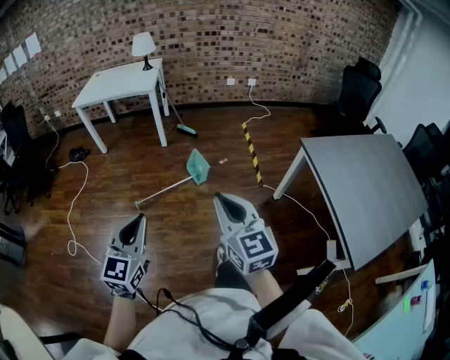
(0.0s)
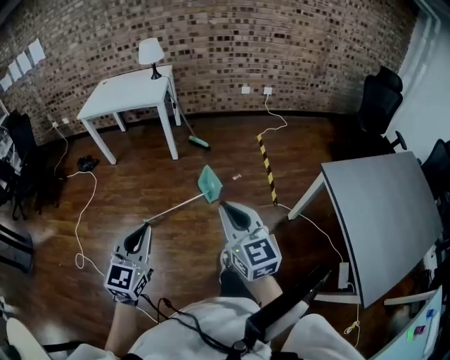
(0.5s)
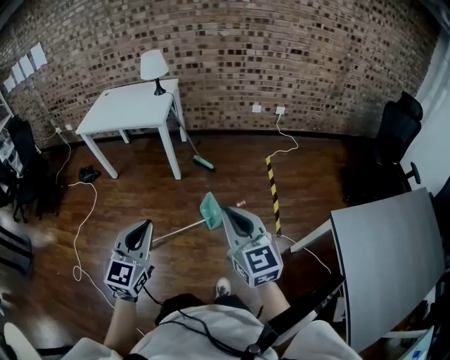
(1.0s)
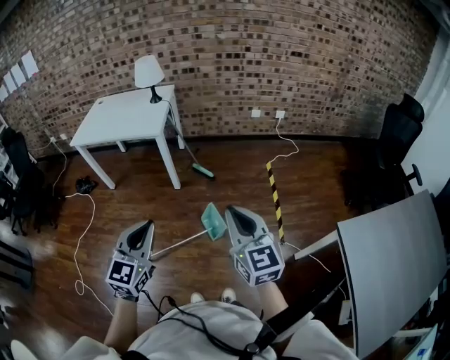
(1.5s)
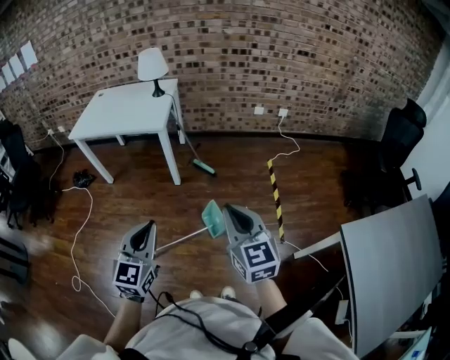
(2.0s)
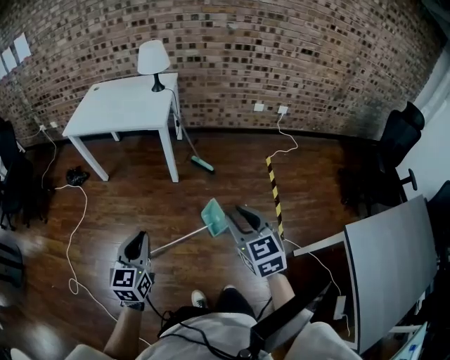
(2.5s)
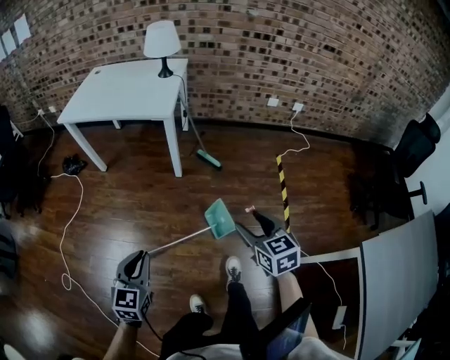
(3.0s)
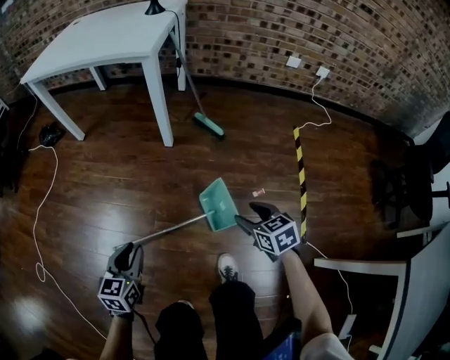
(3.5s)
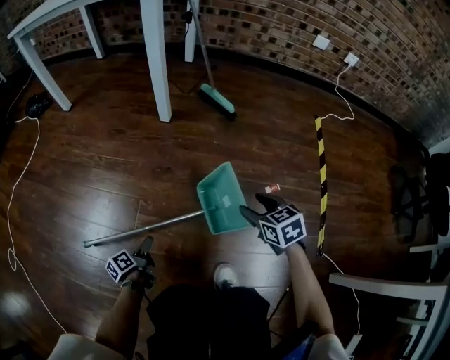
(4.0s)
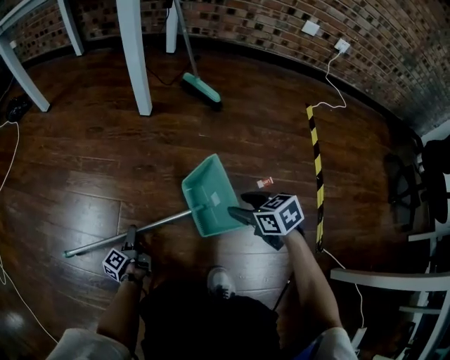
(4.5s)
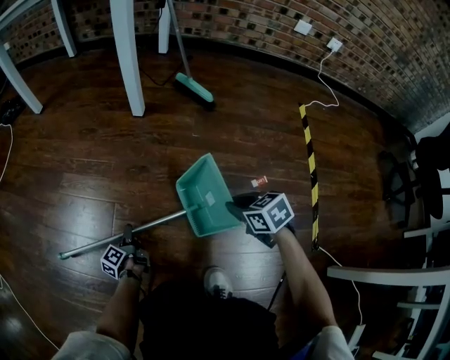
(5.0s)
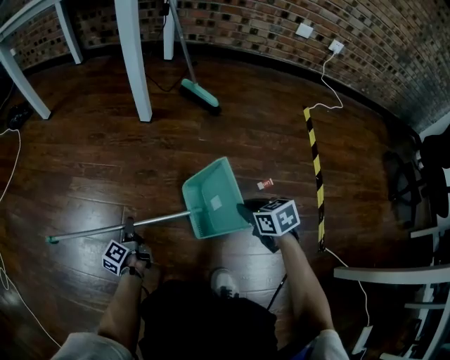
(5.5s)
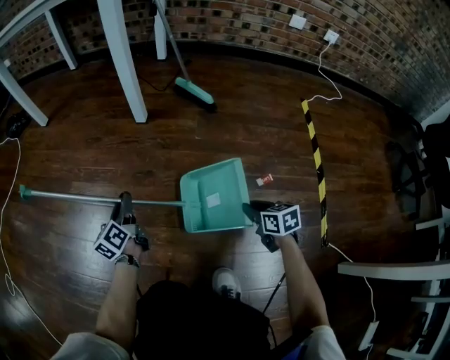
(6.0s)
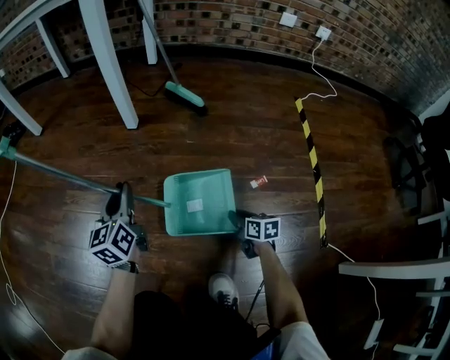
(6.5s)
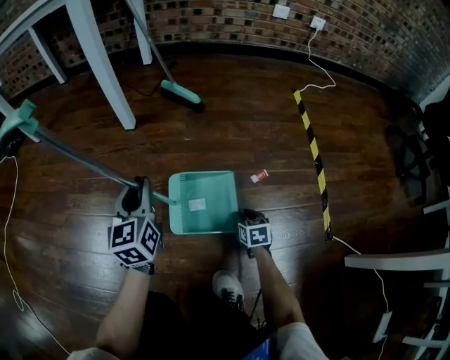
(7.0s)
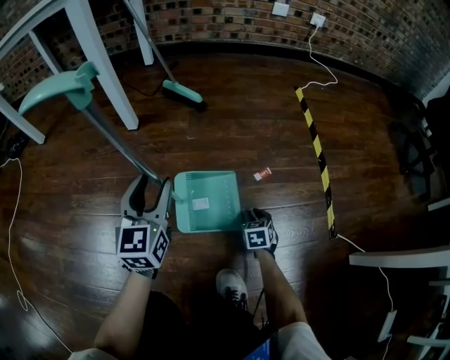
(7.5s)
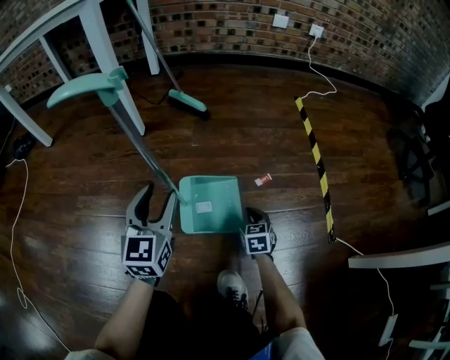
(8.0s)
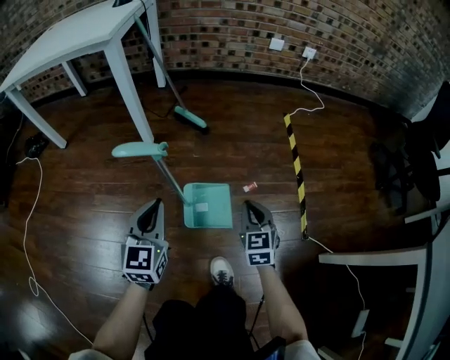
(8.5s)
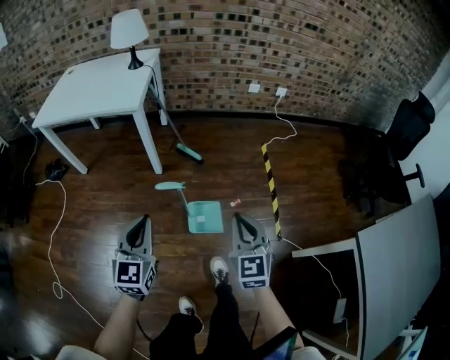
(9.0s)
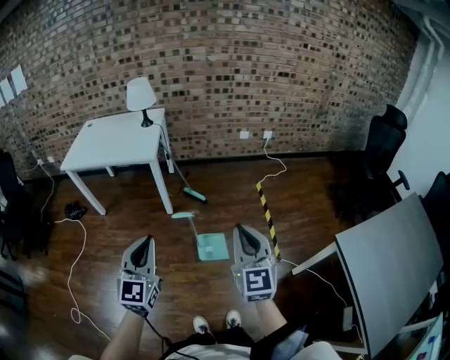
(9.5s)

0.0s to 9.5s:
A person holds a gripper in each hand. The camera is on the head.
0.0s to 2.0s: Both grippers are carried forward, approximately 50 cm.
2.0s to 4.0s: Both grippers move downward, approximately 90 cm. The left gripper rolls counterclockwise, seen from behind, by some 90 degrees, and opens up. Meanwhile the right gripper points its fingers about 40 degrees further downward, and opens its fingers.
4.0s to 5.5s: The right gripper moves downward, some 10 cm, and closes its fingers; the left gripper goes roughly 10 cm forward, rotates about 20 degrees, and closes.
5.5s to 7.5s: The left gripper moves upward, about 25 cm, twists roughly 70 degrees clockwise, seen from behind, and opens up; the right gripper shifts approximately 15 cm downward, and turns by some 30 degrees.
7.5s to 9.5s: The right gripper goes roughly 1 m upward, and tilts its fingers roughly 50 degrees upward; the left gripper travels upward and backward by roughly 80 cm, and closes.

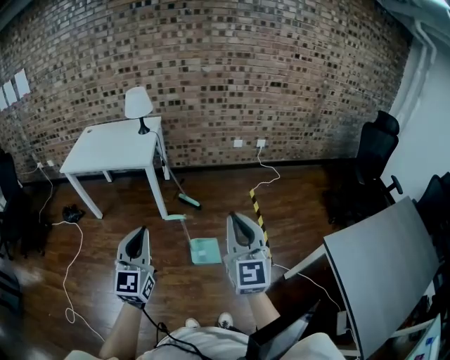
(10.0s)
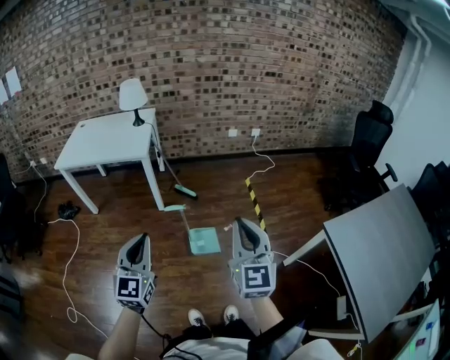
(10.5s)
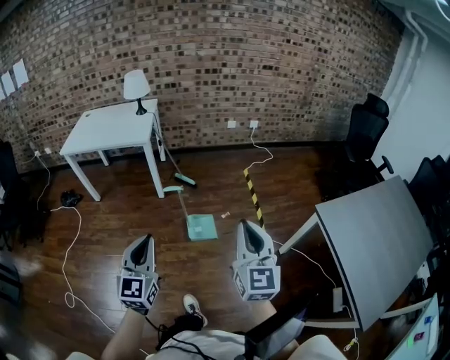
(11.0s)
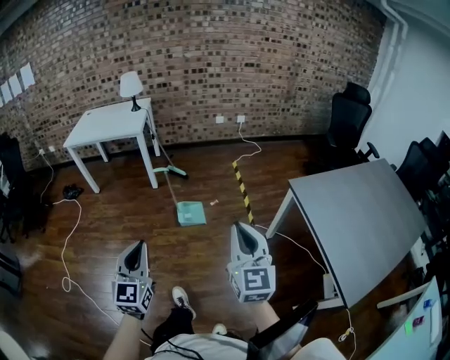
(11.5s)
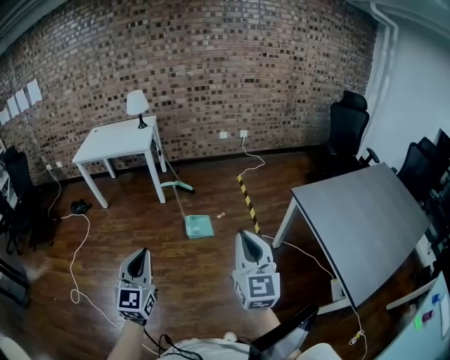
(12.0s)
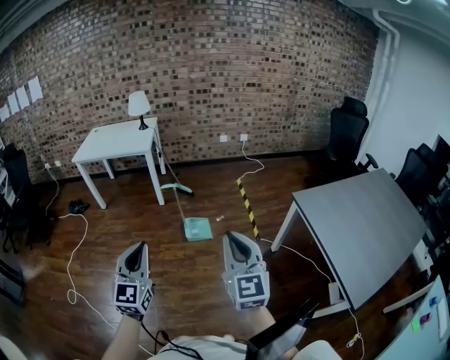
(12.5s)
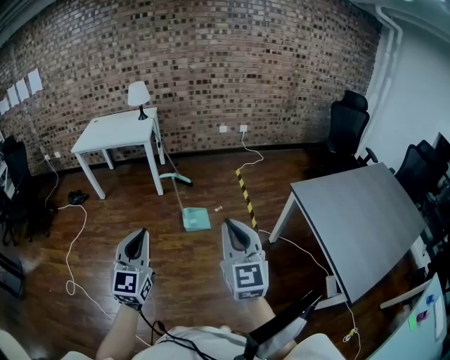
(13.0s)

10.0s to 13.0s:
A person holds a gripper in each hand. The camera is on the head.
10.0s to 11.5s: The grippers both shift backward by roughly 35 cm.
11.5s to 13.0s: The right gripper moves to the left, about 5 cm. The left gripper heads upward, covering approximately 5 cm.

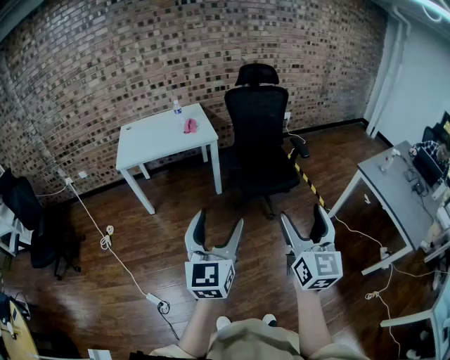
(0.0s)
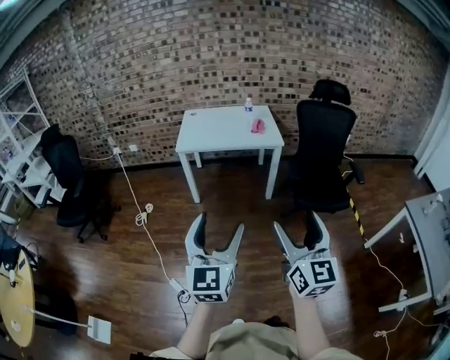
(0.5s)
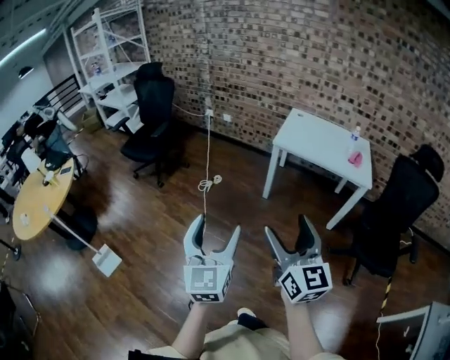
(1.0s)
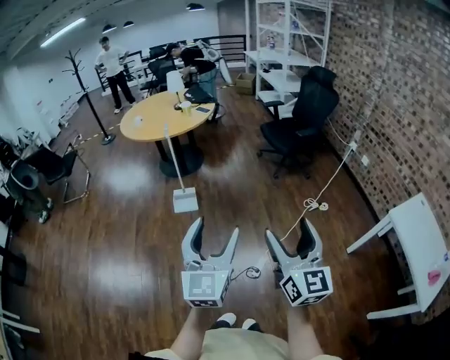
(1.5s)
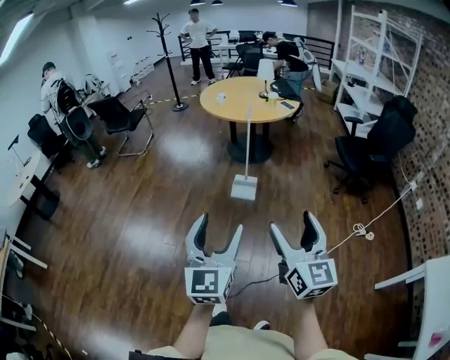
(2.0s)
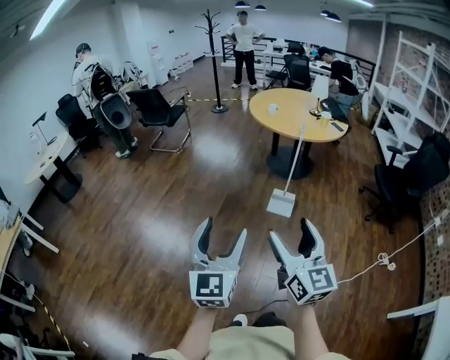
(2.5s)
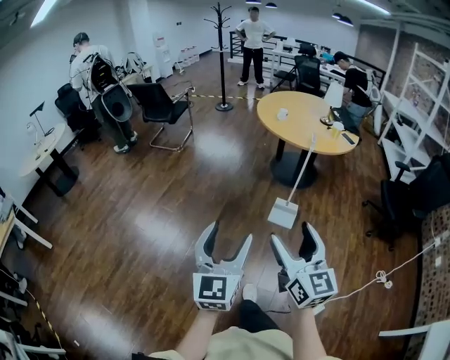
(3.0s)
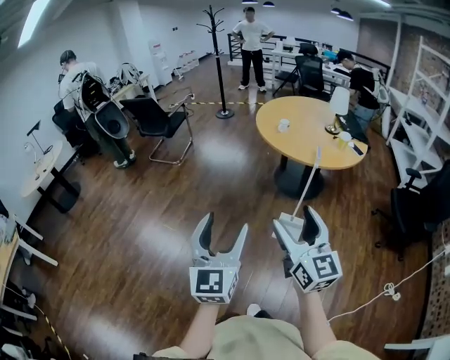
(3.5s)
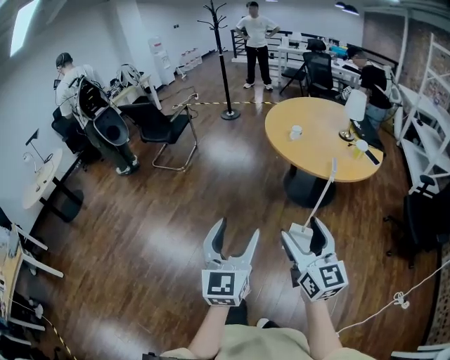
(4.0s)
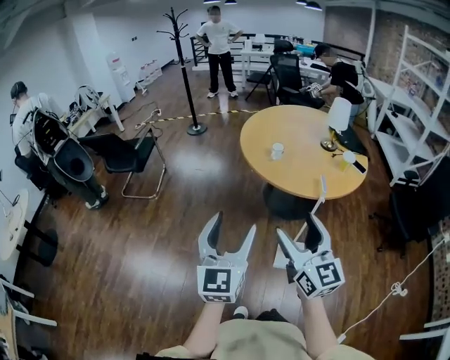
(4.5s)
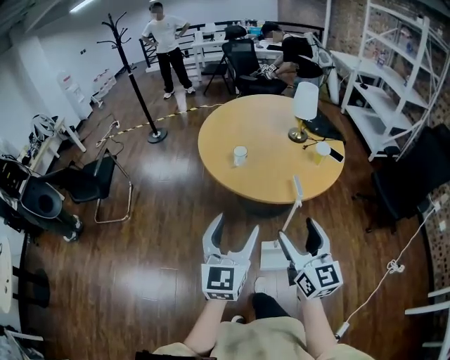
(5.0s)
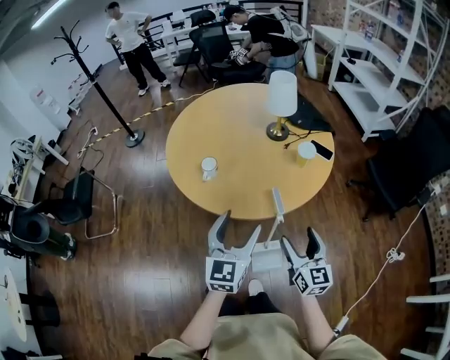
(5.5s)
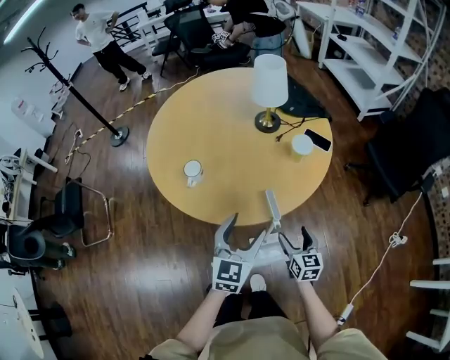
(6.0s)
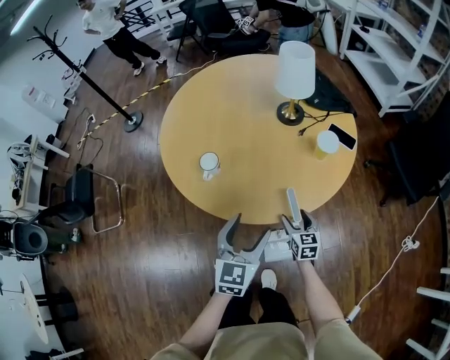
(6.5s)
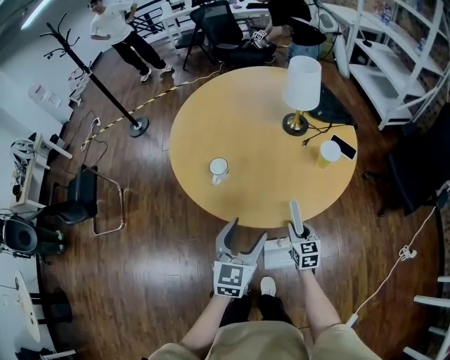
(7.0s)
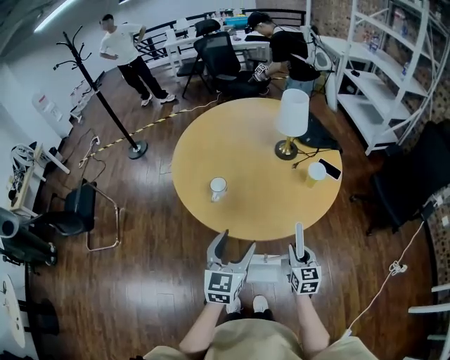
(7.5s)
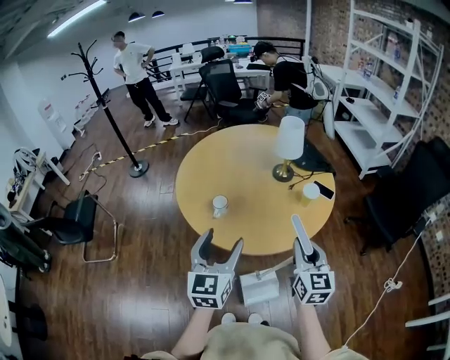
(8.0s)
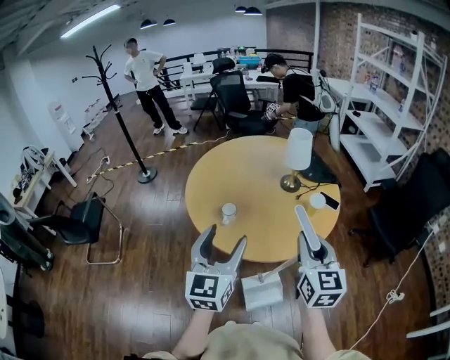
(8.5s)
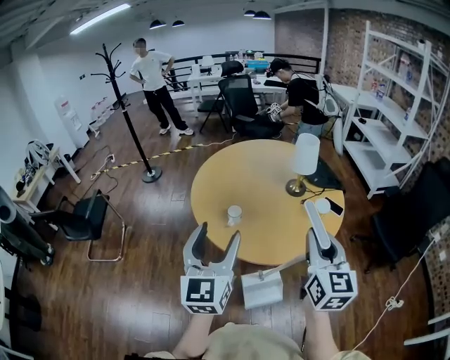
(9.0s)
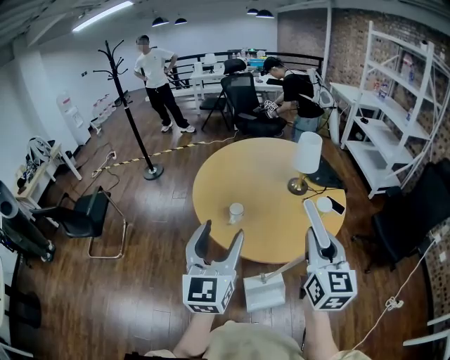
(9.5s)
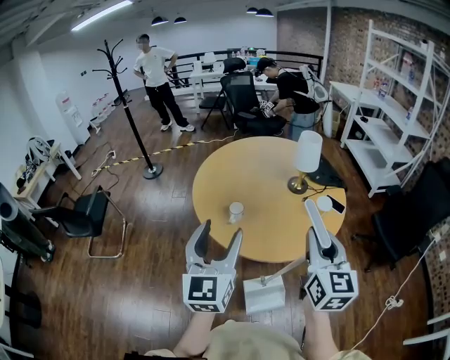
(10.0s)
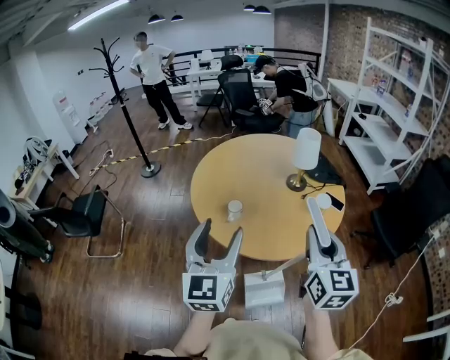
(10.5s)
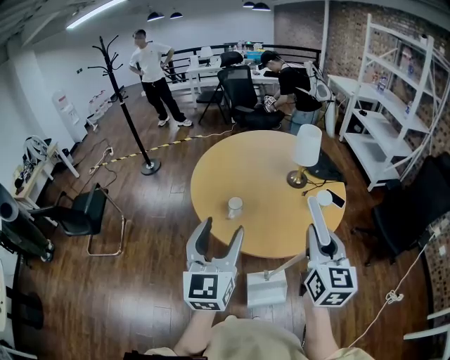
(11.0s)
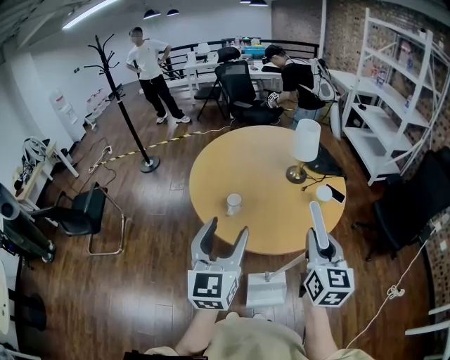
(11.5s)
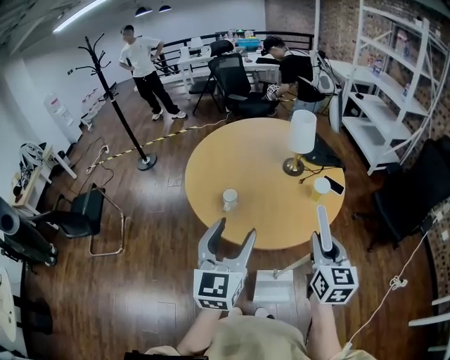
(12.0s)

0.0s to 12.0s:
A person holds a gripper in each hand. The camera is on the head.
0.0s to 2.0s: The pair of grippers is taken approximately 70 cm. The right gripper changes its angle by about 120 degrees. The left gripper turns by some 120 degrees.
2.0s to 4.0s: Both grippers are carried forward, approximately 60 cm.
4.0s to 6.0s: Both grippers are carried some 60 cm. The left gripper turns by about 50 degrees. Meanwhile the right gripper turns by about 50 degrees.
6.0s to 8.0s: The left gripper moves upward and to the left, approximately 20 cm, while the right gripper heads upward, covering about 25 cm, and closes up.
8.0s to 10.0s: The right gripper is displaced upward by about 15 cm, while the left gripper goes some 10 cm upward and to the left.
10.0s to 12.0s: The left gripper travels to the right by approximately 5 cm. The right gripper goes some 10 cm downward.

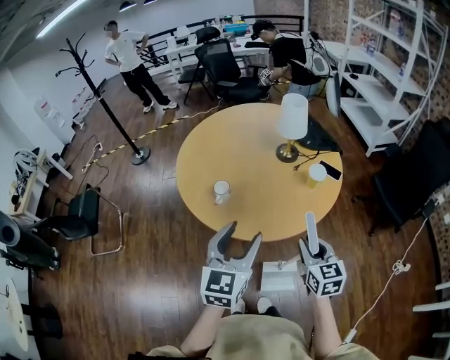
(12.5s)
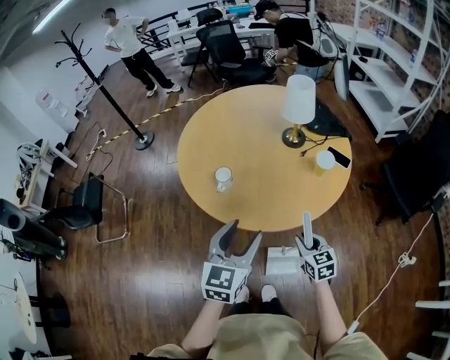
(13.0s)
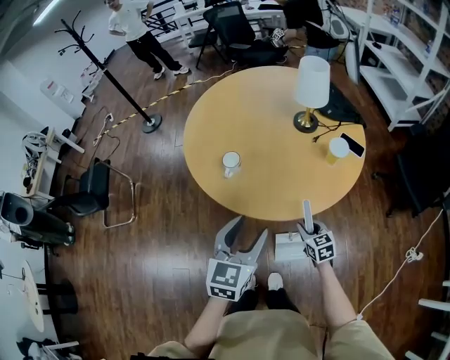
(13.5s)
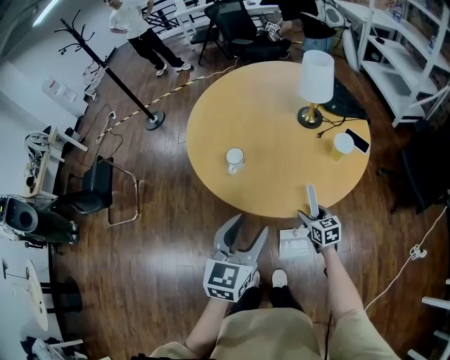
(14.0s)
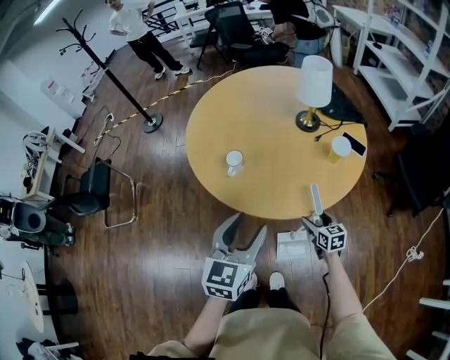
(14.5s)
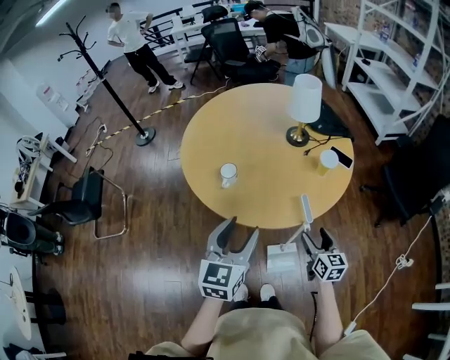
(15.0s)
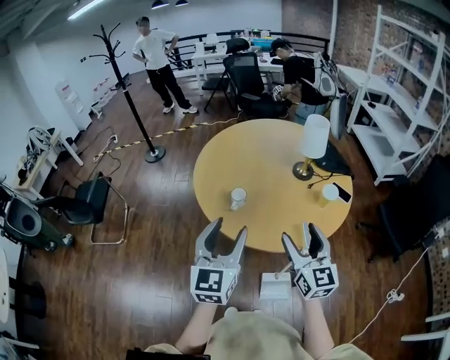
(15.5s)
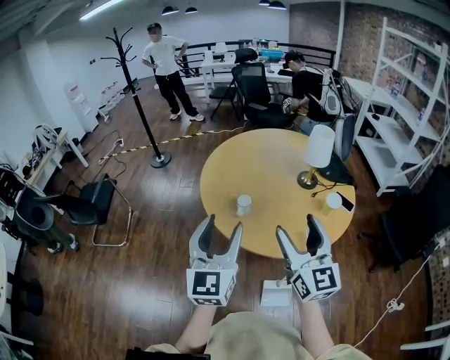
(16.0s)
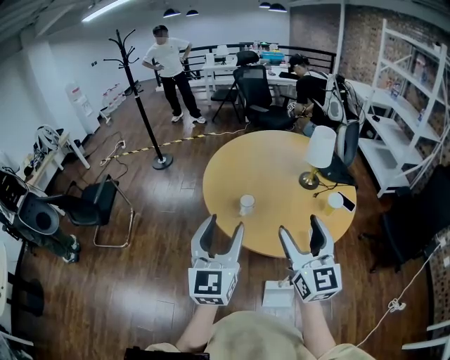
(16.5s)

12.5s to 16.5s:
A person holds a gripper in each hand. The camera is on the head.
12.5s to 14.5s: The left gripper travels downward by roughly 5 cm. The right gripper goes about 25 cm downward, and opens.
14.5s to 16.5s: The right gripper moves upward, about 40 cm, and angles its fingers upward, by some 40 degrees. Meanwhile the left gripper moves upward and to the left, approximately 20 cm, and changes its angle by about 30 degrees.
